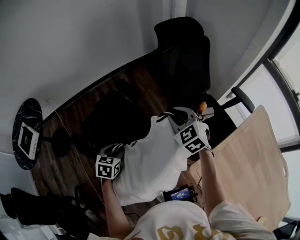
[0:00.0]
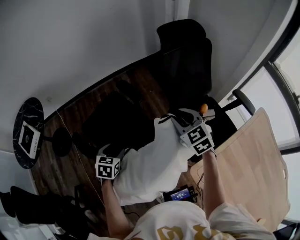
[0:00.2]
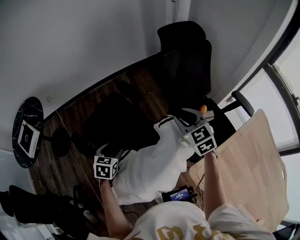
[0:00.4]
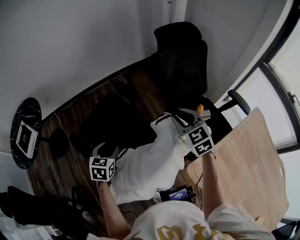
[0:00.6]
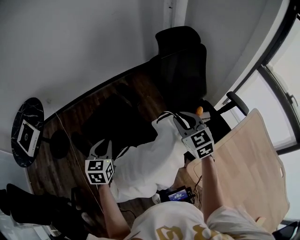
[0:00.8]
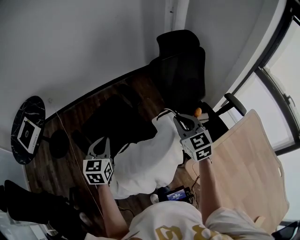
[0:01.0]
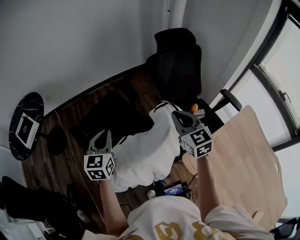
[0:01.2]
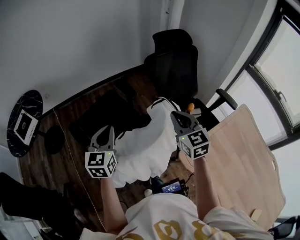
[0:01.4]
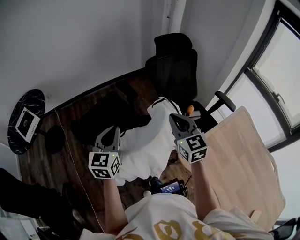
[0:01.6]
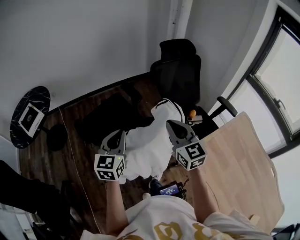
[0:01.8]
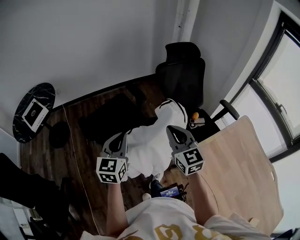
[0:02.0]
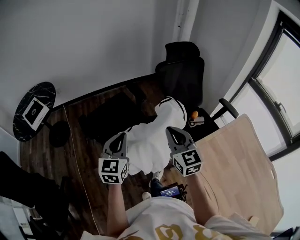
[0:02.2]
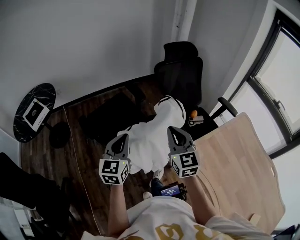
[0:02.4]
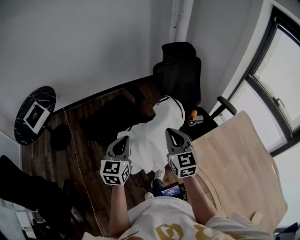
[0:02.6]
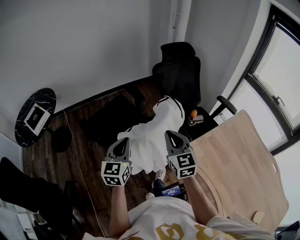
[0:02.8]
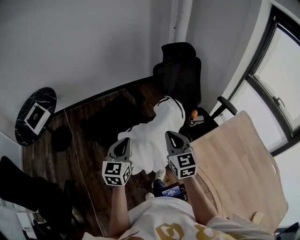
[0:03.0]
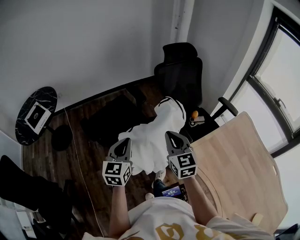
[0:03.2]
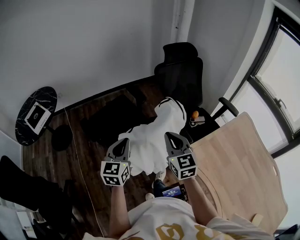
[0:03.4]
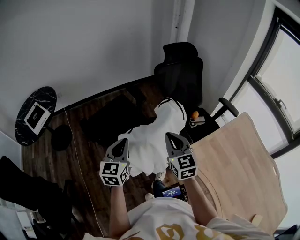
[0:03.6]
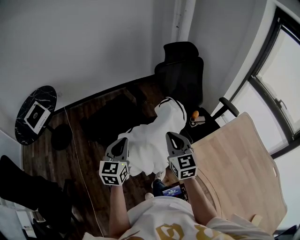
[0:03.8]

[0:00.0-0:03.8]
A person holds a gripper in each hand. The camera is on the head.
0:00.0 to 0:01.2: The right gripper moves backward and upward, approximately 15 cm, and swivels approximately 20 degrees. The left gripper shifts approximately 20 cm upward, angles its fingers upward, by approximately 30 degrees, and closes up.
0:01.2 to 0:02.6: Both grippers move backward, some 15 cm.
0:02.6 to 0:03.8: The grippers move only a little.

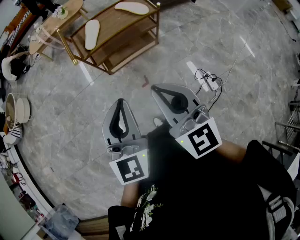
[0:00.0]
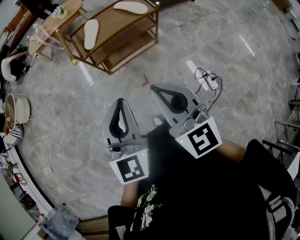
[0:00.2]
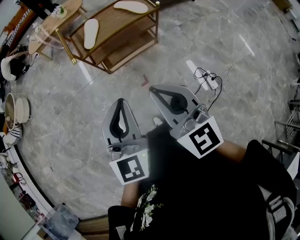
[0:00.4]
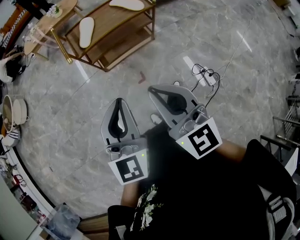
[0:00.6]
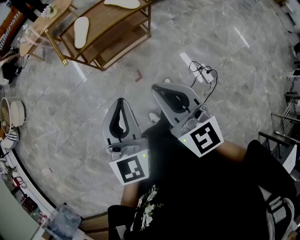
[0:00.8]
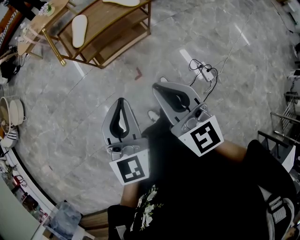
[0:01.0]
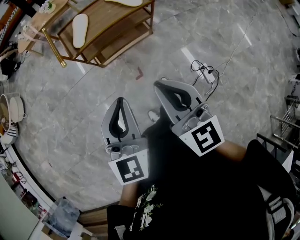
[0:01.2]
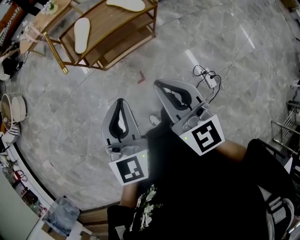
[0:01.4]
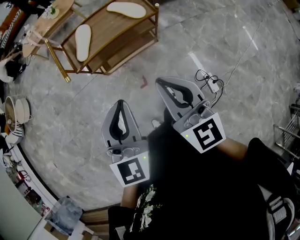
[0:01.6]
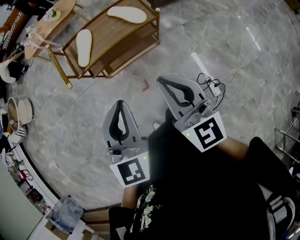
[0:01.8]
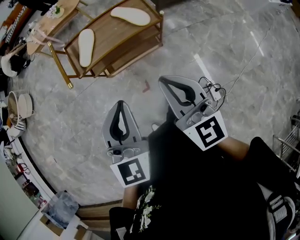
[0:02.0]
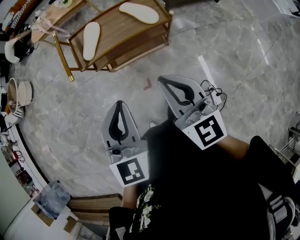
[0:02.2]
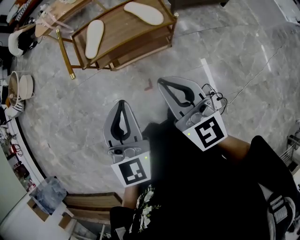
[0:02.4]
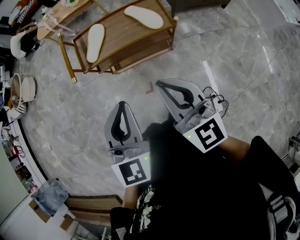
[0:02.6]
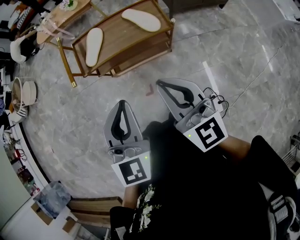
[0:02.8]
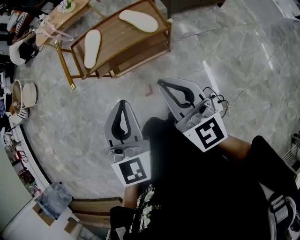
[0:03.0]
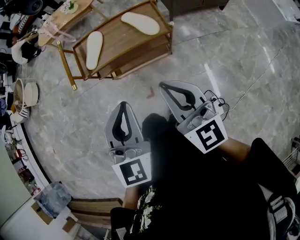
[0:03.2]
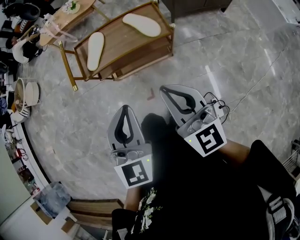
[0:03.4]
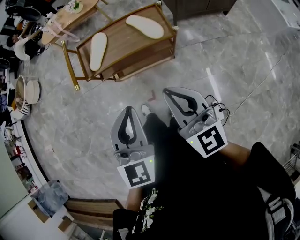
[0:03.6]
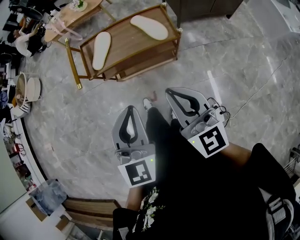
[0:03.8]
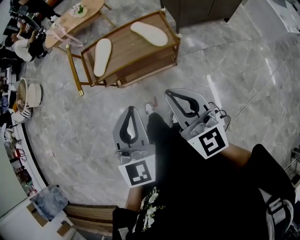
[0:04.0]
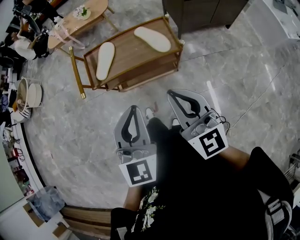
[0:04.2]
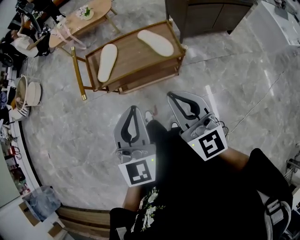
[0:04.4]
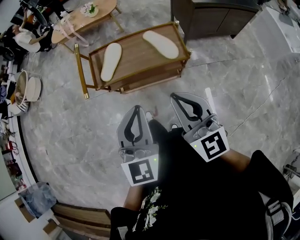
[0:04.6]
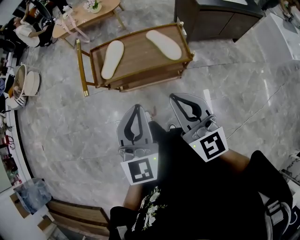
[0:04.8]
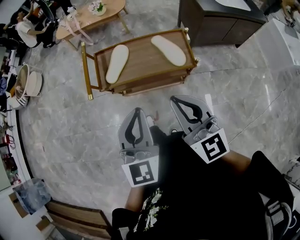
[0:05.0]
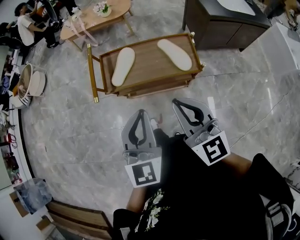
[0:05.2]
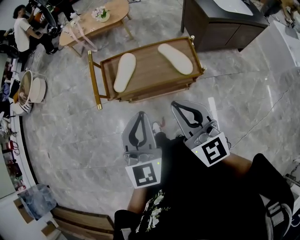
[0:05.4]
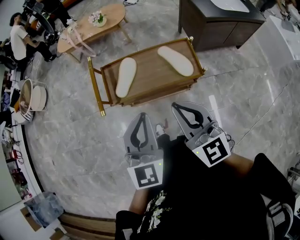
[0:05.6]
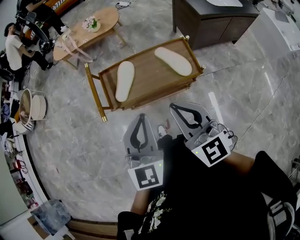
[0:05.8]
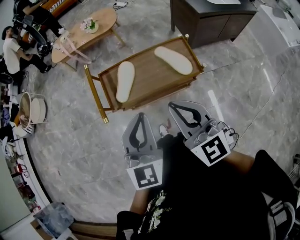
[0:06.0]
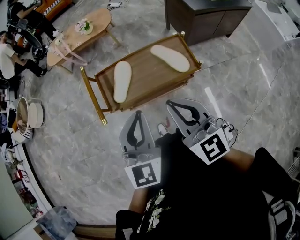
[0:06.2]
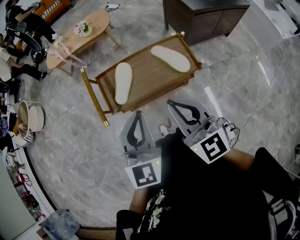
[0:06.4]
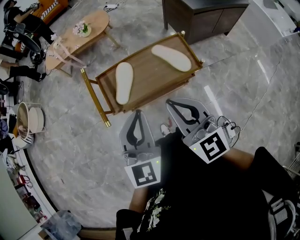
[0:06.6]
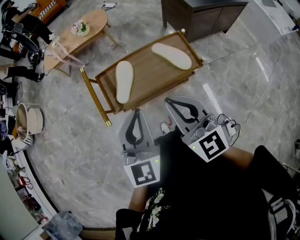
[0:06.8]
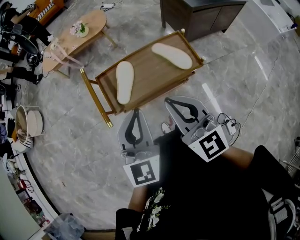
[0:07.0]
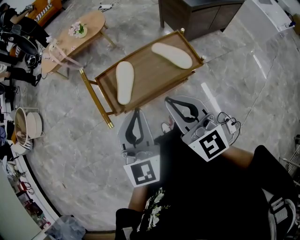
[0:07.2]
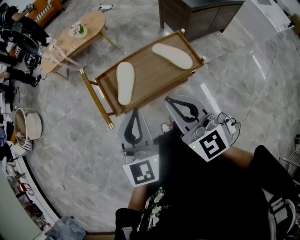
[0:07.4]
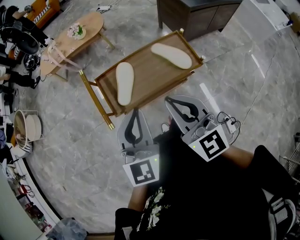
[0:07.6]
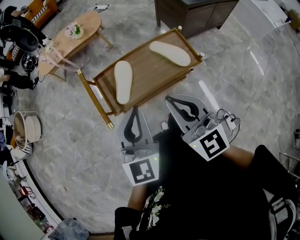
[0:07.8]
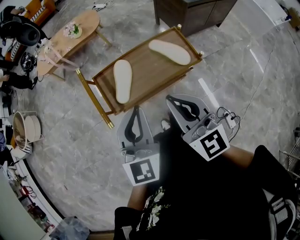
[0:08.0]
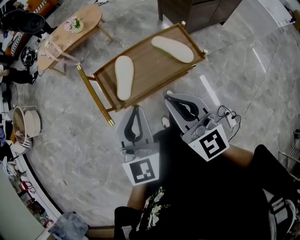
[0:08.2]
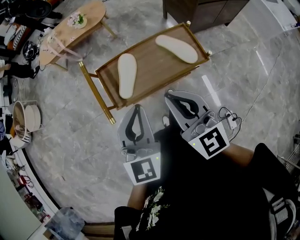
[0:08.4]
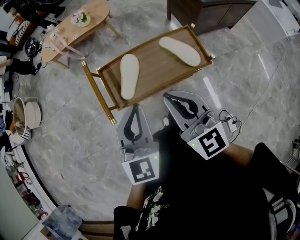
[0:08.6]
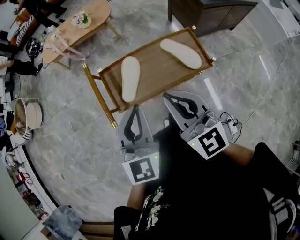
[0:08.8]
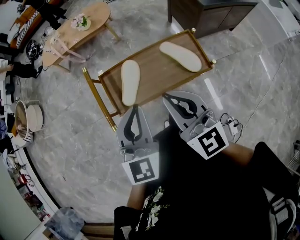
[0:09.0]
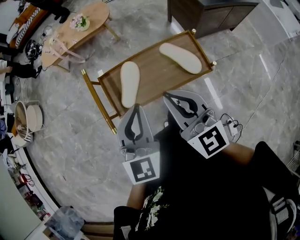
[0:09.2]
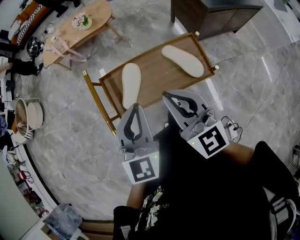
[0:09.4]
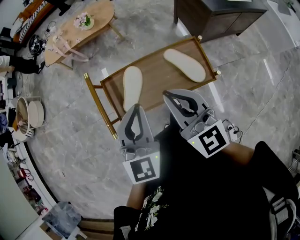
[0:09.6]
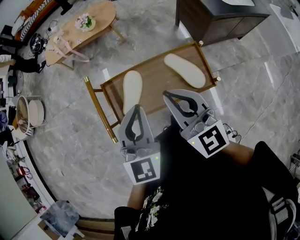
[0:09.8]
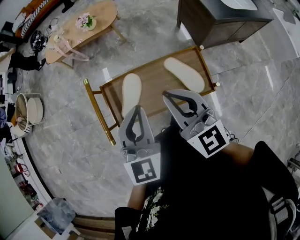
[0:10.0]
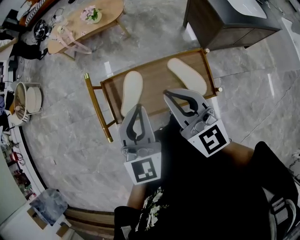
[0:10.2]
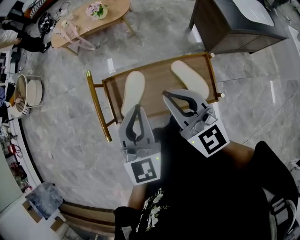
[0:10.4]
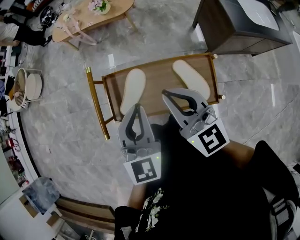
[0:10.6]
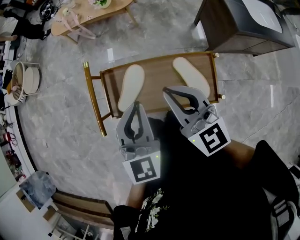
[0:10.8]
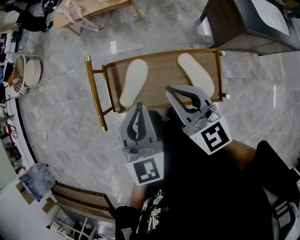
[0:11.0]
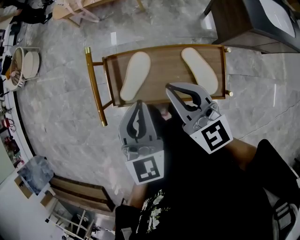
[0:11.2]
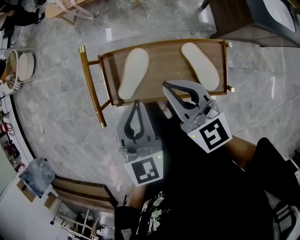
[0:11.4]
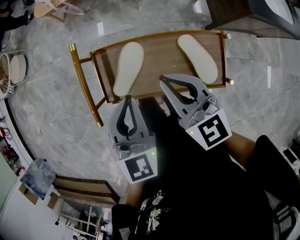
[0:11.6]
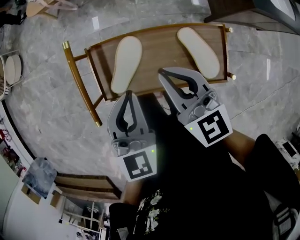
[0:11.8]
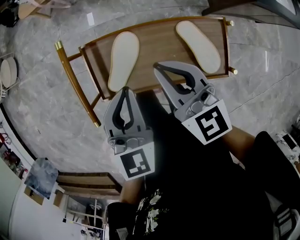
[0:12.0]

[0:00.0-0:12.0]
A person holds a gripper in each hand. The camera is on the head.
0:00.0 to 0:01.6: The two grippers go roughly 15 cm forward and to the right.
0:01.6 to 0:03.0: The left gripper heads to the right and forward, covering about 10 cm, while the right gripper travels forward and to the right by roughly 10 cm.
0:03.0 to 0:04.4: The grippers make only small movements.
0:04.4 to 0:06.0: The grippers both shift forward and to the left by approximately 15 cm.
0:06.0 to 0:07.6: The two grippers go some 5 cm to the left.
0:07.6 to 0:09.0: Both grippers move forward, approximately 5 cm.
0:09.0 to 0:10.4: Both grippers travel together forward and to the right, some 10 cm.
0:10.4 to 0:12.0: The left gripper travels downward by roughly 10 cm. The right gripper is displaced downward and forward by roughly 10 cm.

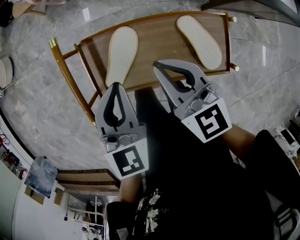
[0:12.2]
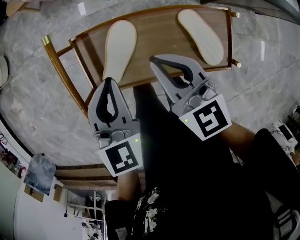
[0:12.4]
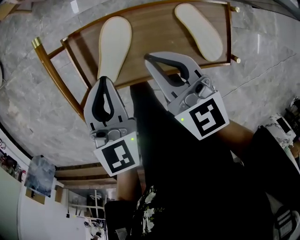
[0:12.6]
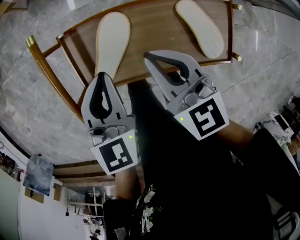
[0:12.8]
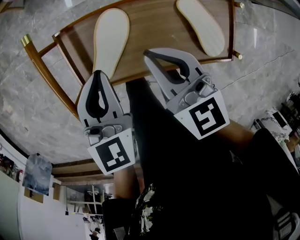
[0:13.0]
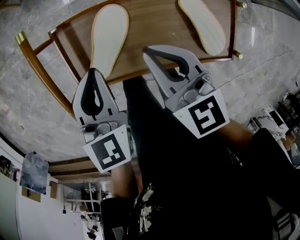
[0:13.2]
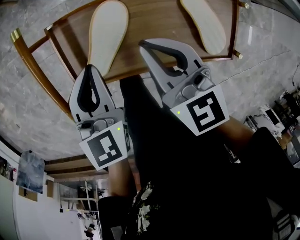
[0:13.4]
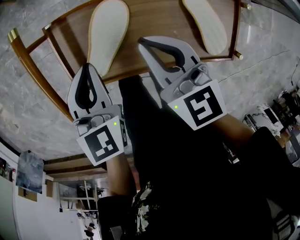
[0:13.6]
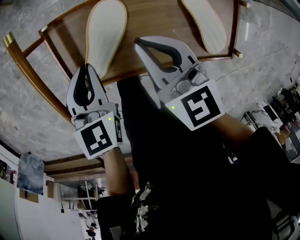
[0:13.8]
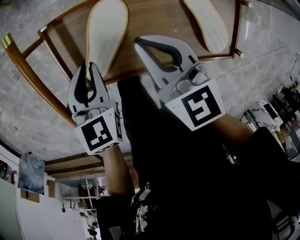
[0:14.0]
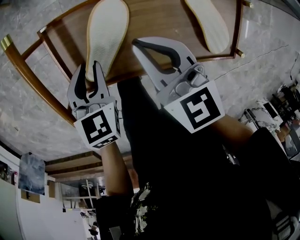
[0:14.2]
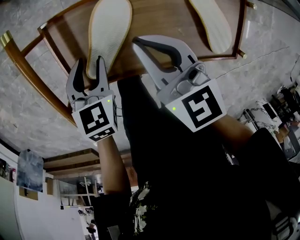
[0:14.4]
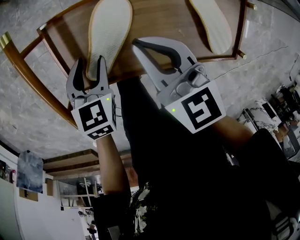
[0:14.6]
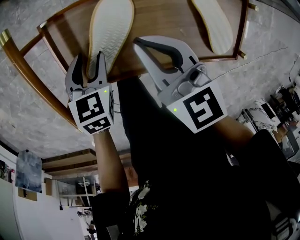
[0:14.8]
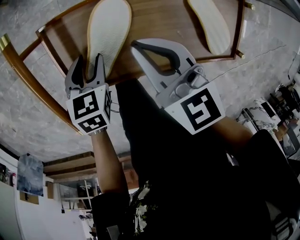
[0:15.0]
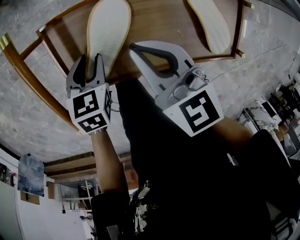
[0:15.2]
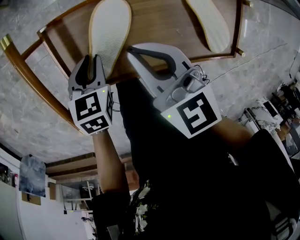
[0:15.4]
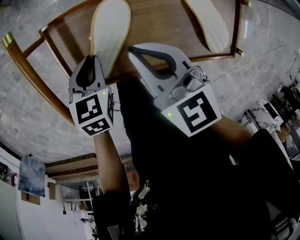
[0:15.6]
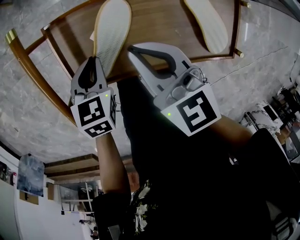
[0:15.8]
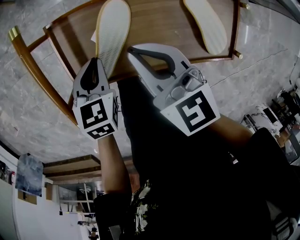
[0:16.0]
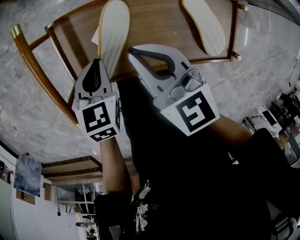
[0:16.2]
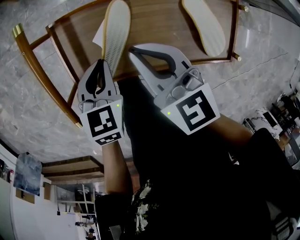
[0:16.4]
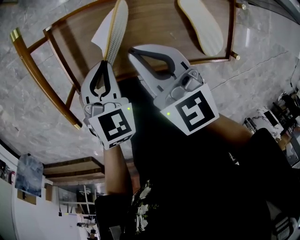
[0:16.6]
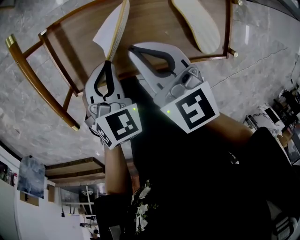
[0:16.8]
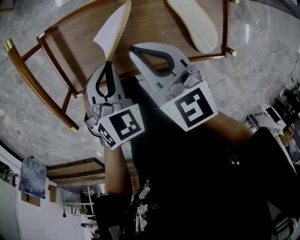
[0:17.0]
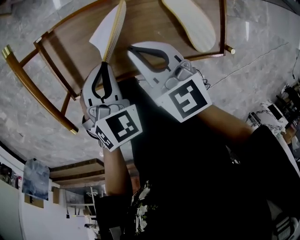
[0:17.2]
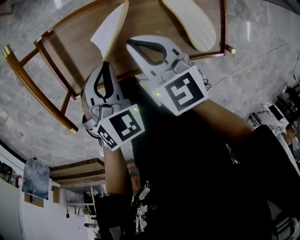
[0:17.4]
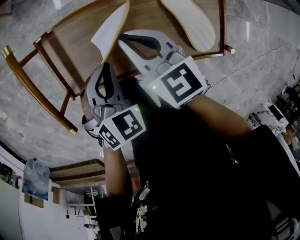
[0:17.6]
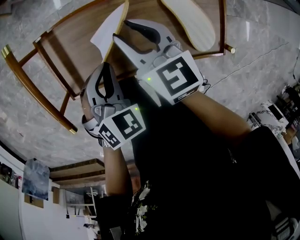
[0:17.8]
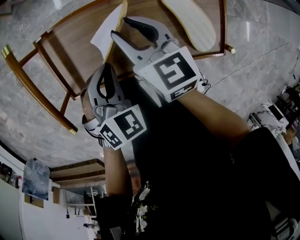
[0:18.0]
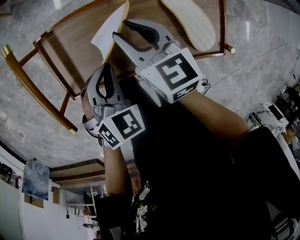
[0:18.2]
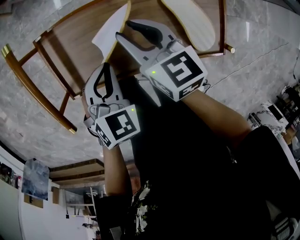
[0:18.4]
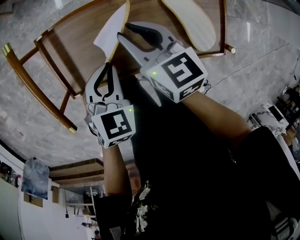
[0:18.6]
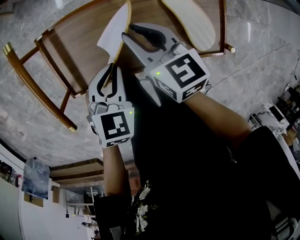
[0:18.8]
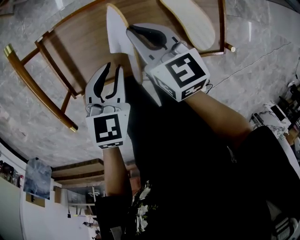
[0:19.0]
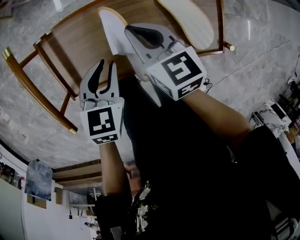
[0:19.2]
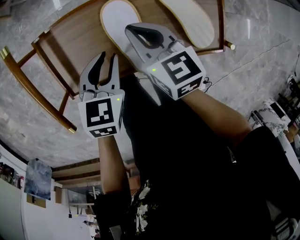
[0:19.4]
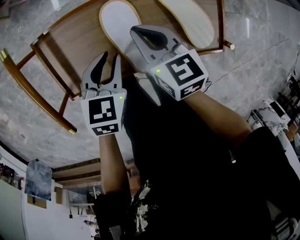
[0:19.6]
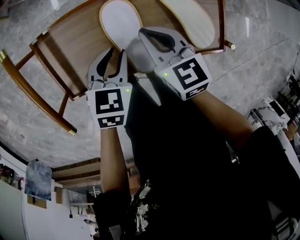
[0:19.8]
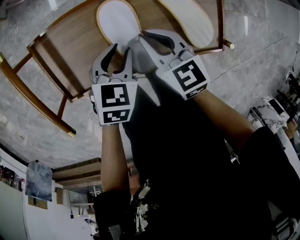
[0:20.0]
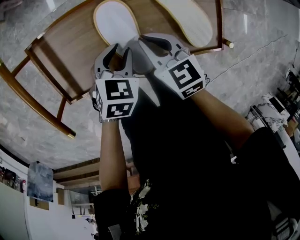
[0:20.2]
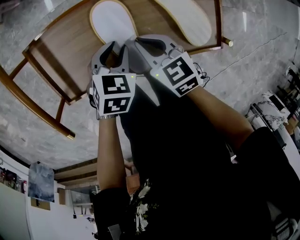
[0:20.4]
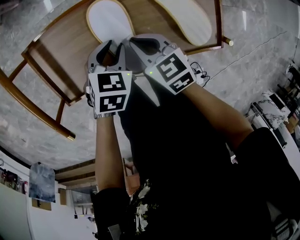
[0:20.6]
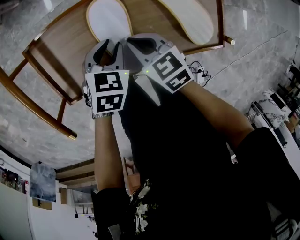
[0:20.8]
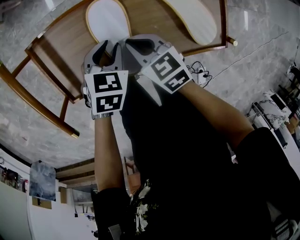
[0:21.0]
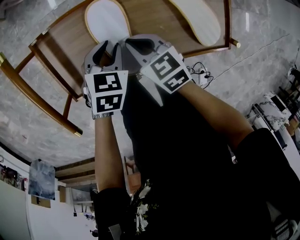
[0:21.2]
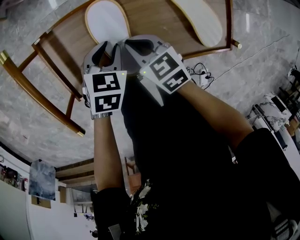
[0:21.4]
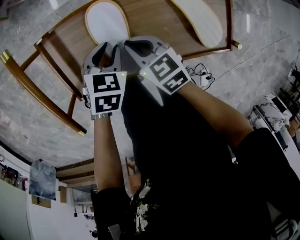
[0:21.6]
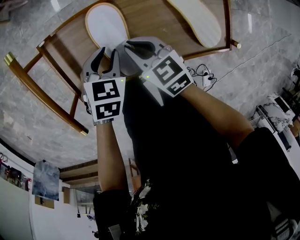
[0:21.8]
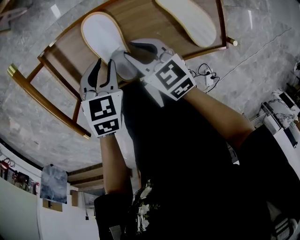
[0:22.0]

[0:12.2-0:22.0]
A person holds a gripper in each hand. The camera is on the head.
0:12.2 to 0:13.6: The grippers both shift downward by approximately 10 cm.
0:13.6 to 0:15.0: The left gripper is displaced downward by about 15 cm, changes its angle by about 20 degrees, and opens.
0:15.0 to 0:16.4: The left gripper heads upward, covering some 10 cm, and closes up.
0:16.4 to 0:17.8: The left gripper moves to the right, approximately 5 cm, and changes its angle by about 30 degrees. The right gripper changes place by roughly 10 cm, and opens its fingers.
0:17.8 to 0:19.2: The left gripper changes its angle by approximately 30 degrees; the right gripper closes its fingers.
0:19.2 to 0:20.6: The right gripper travels downward and backward by roughly 10 cm, while the left gripper shifts roughly 10 cm downward and to the right.
0:20.6 to 0:22.0: The right gripper moves approximately 5 cm. The left gripper heads to the left, covering roughly 5 cm.
